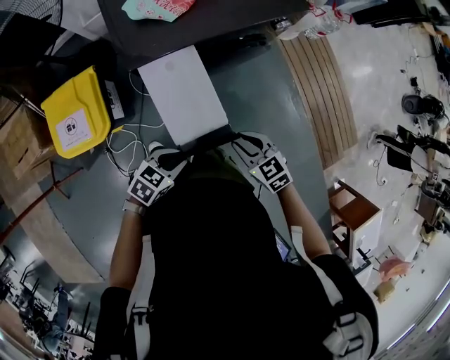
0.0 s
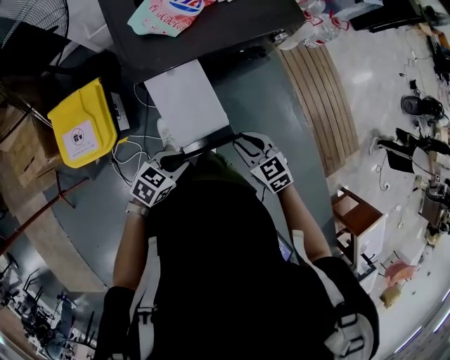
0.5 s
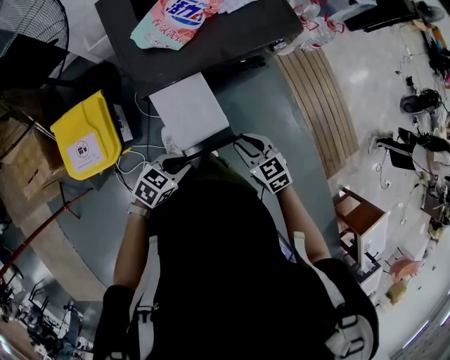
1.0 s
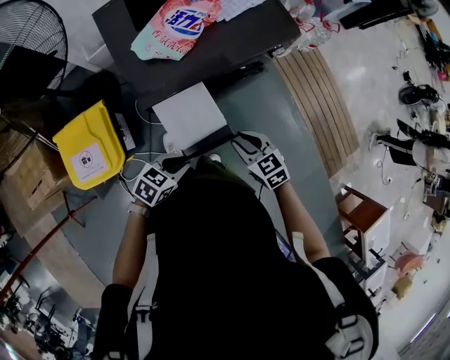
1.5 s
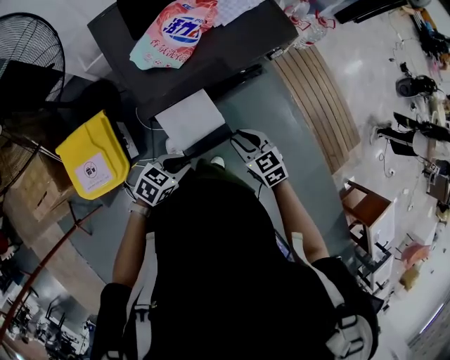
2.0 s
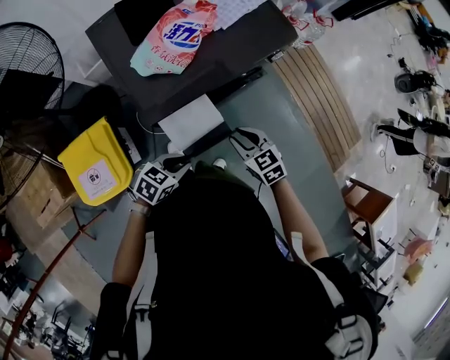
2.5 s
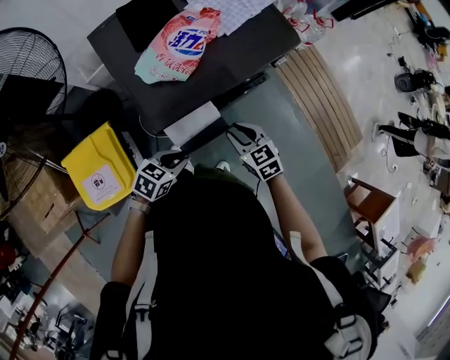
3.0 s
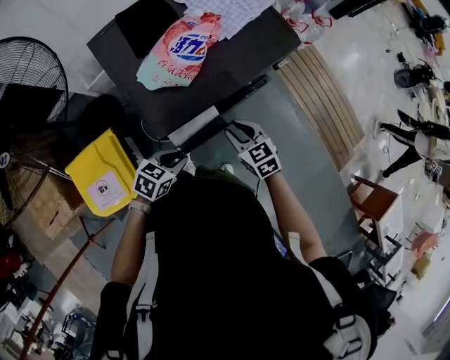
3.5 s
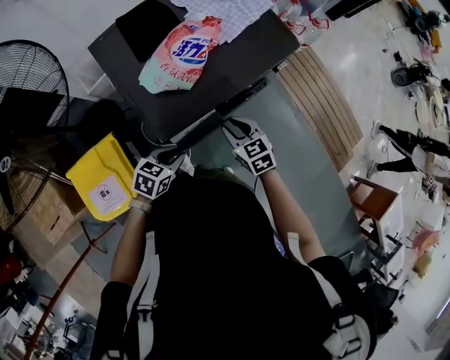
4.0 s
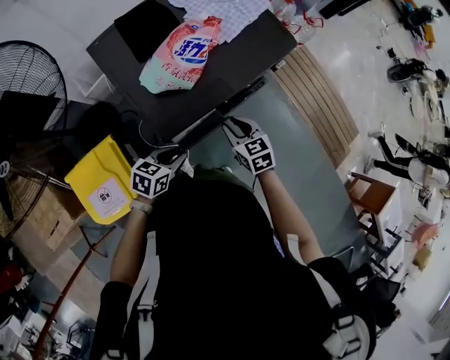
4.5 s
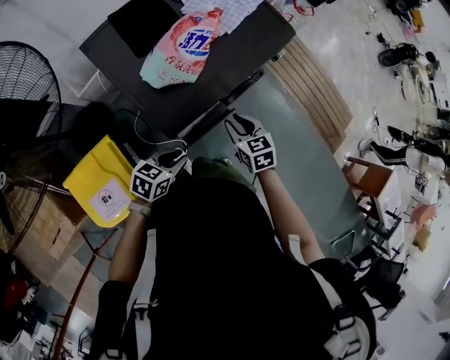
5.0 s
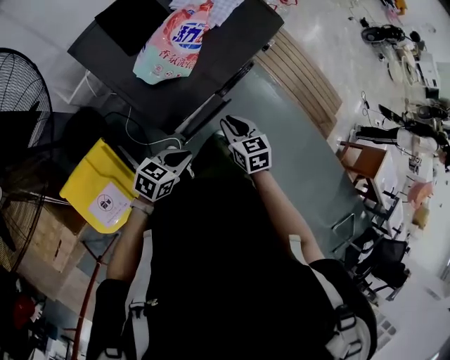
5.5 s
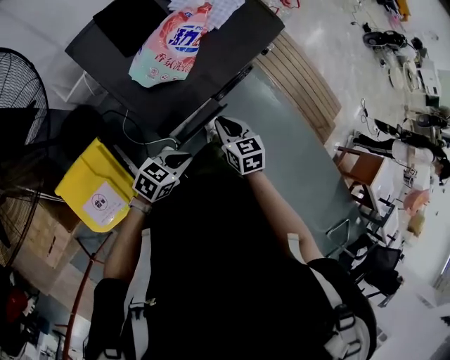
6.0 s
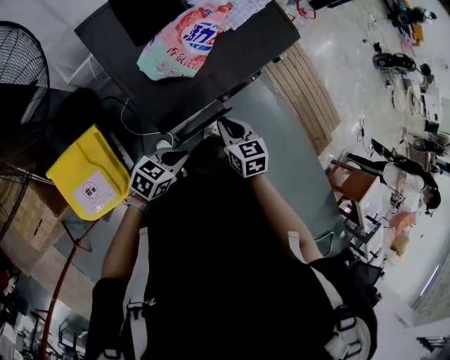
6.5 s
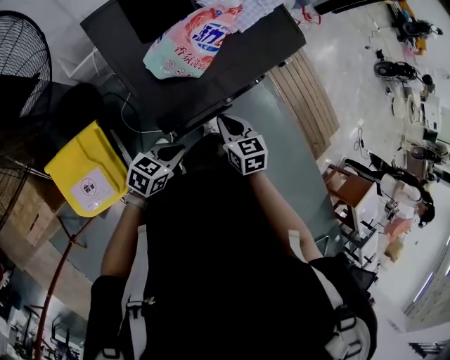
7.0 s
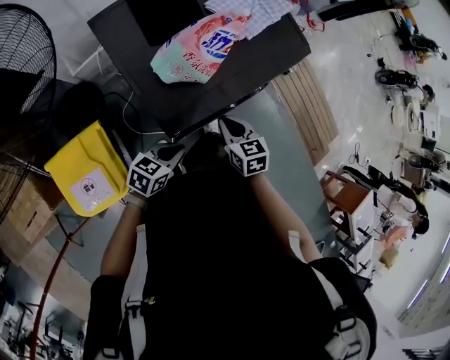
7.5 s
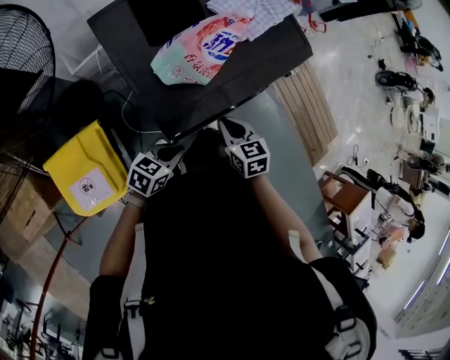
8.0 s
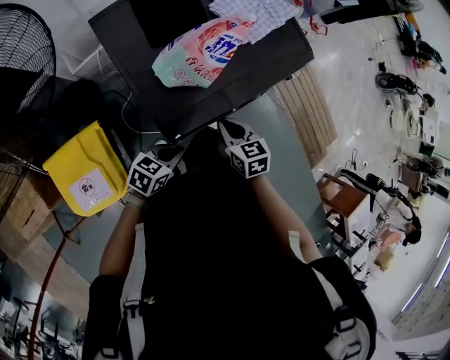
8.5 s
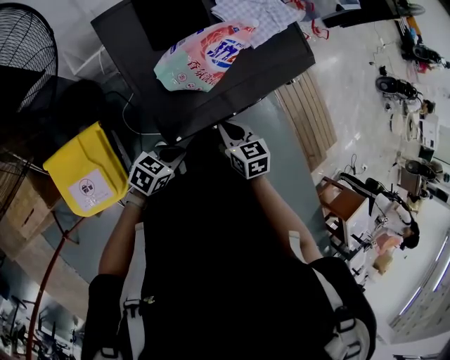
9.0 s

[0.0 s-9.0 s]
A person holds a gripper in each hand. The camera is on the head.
0.0 to 2.0 s: Both grippers move forward and to the left, approximately 15 cm.
2.0 to 4.5 s: The grippers both shift to the left and forward by approximately 10 cm.
4.5 to 7.0 s: The right gripper closes its fingers.
7.0 to 9.0 s: The grippers move only a little.

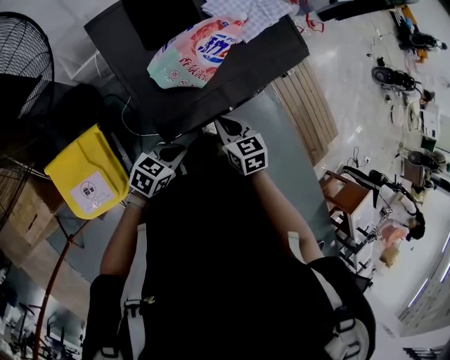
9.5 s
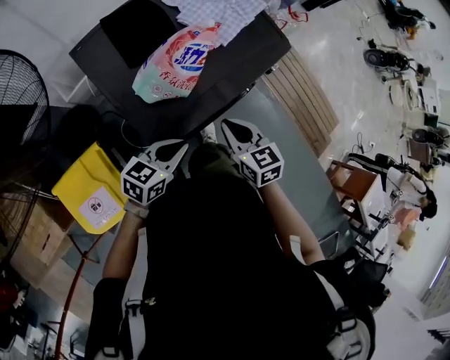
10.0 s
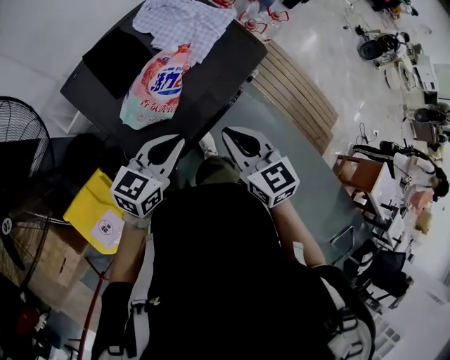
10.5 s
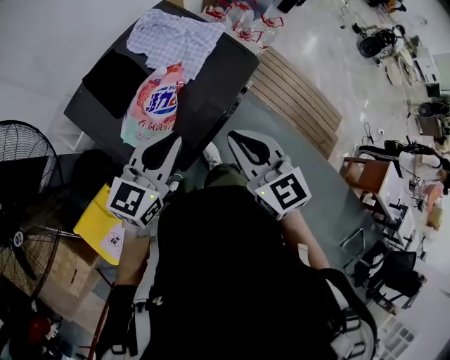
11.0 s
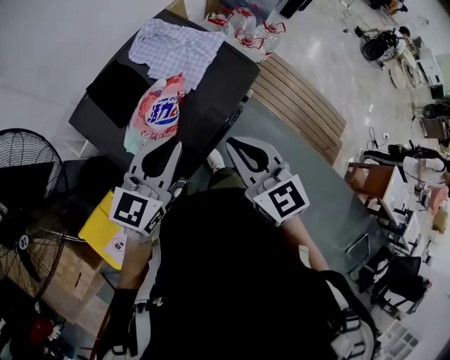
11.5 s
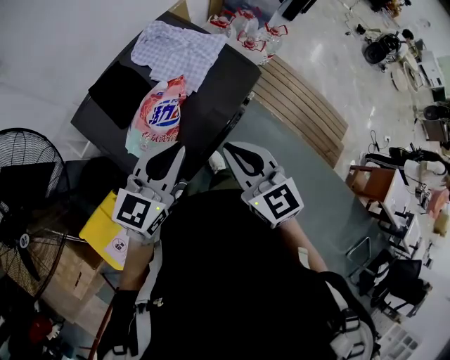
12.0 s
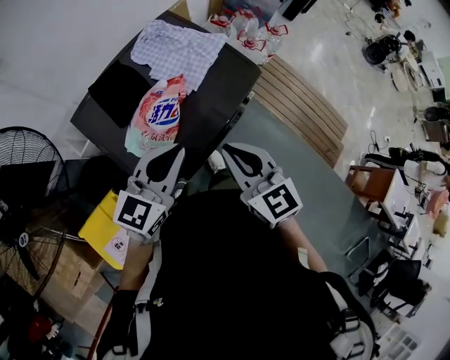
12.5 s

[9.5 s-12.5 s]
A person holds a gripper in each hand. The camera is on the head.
9.5 to 11.0 s: The left gripper goes roughly 30 cm upward and forward, and rotates roughly 30 degrees. The right gripper moves upward, approximately 25 cm, and changes its angle by approximately 30 degrees.
11.0 to 12.5 s: The grippers stay close to where they were, moving slightly.

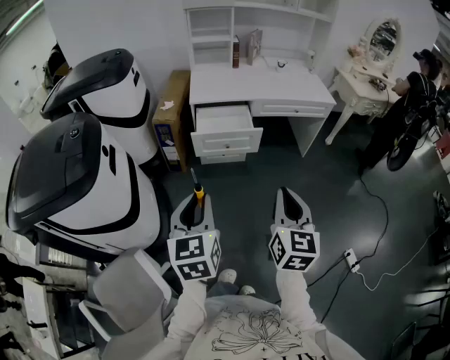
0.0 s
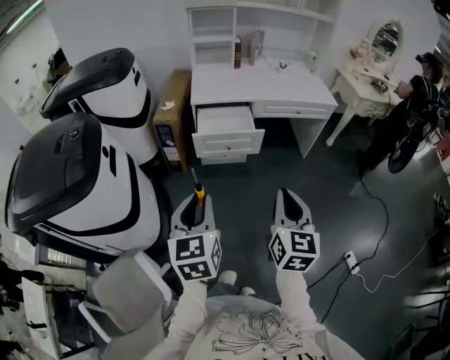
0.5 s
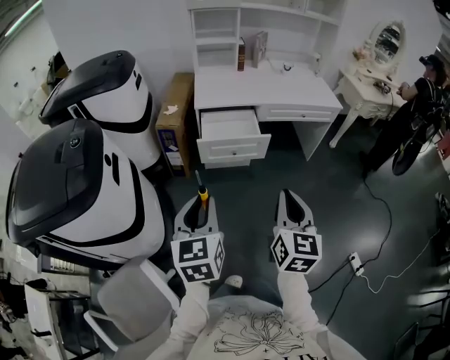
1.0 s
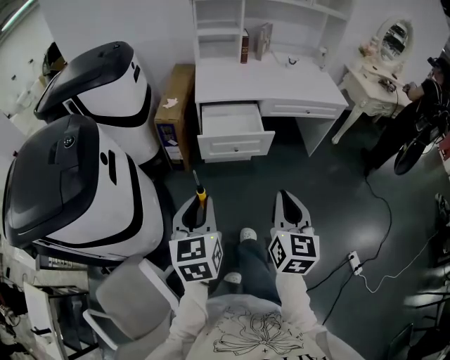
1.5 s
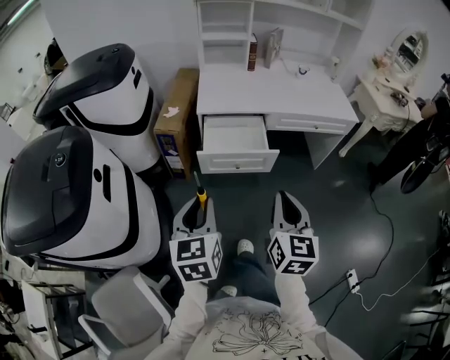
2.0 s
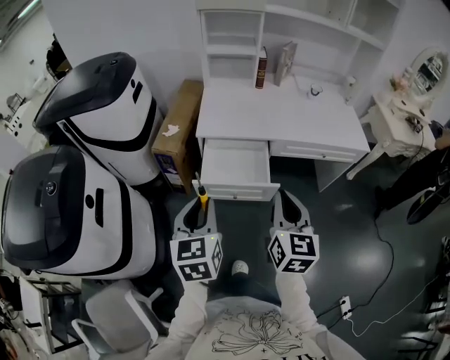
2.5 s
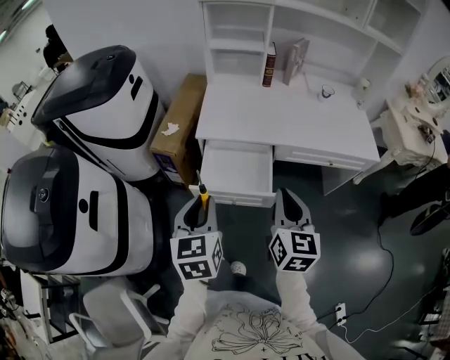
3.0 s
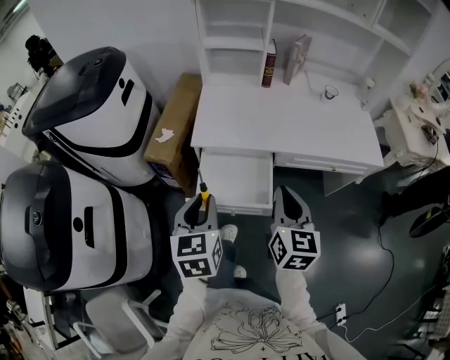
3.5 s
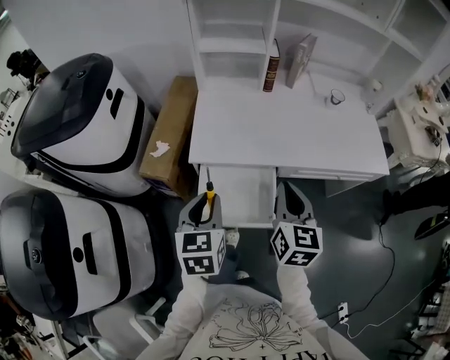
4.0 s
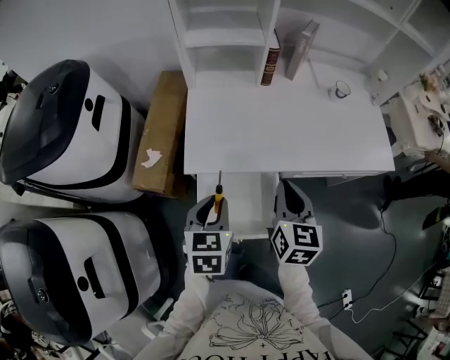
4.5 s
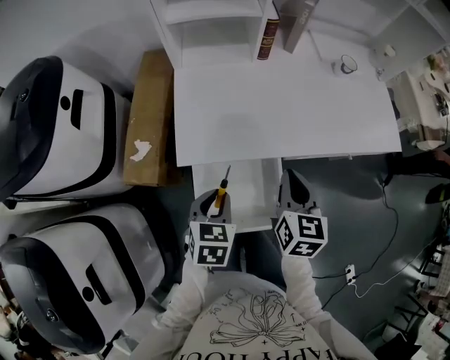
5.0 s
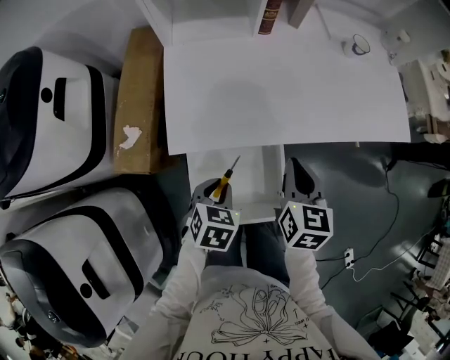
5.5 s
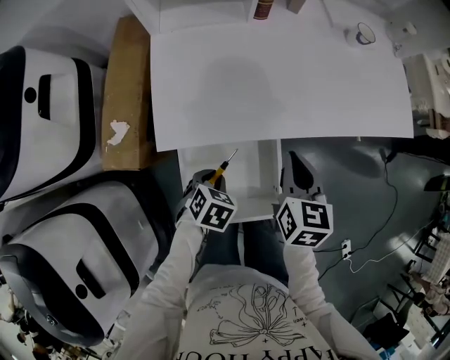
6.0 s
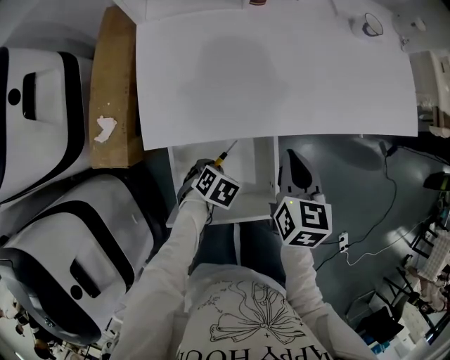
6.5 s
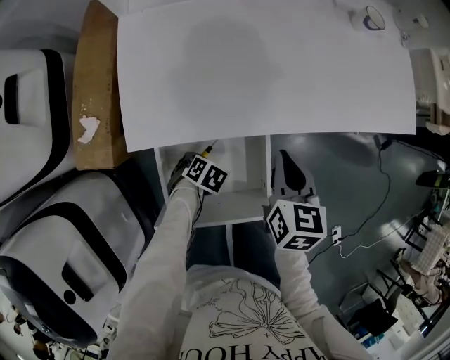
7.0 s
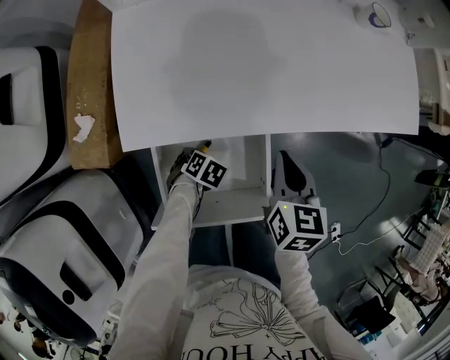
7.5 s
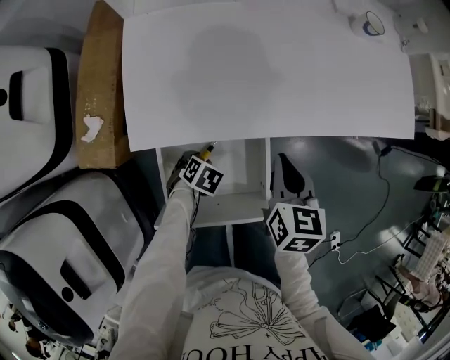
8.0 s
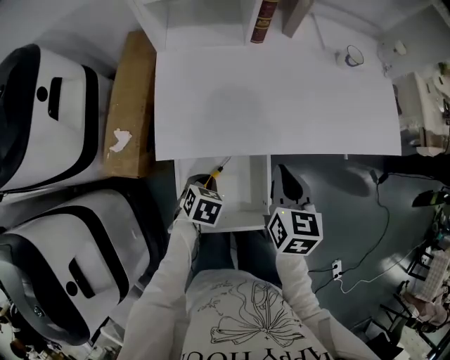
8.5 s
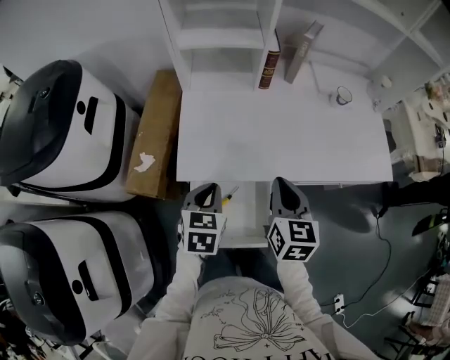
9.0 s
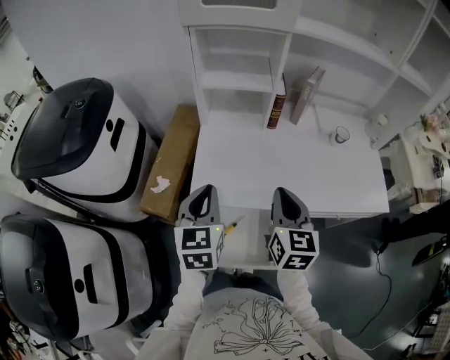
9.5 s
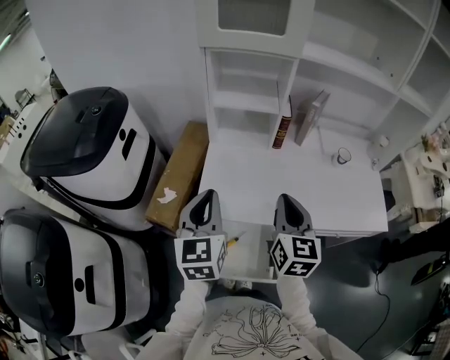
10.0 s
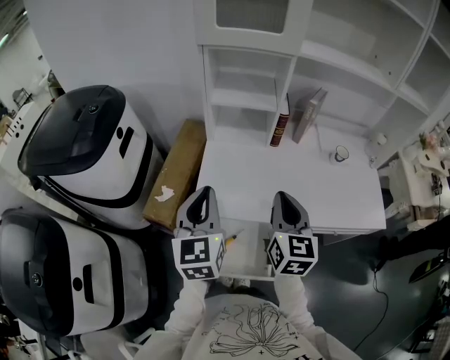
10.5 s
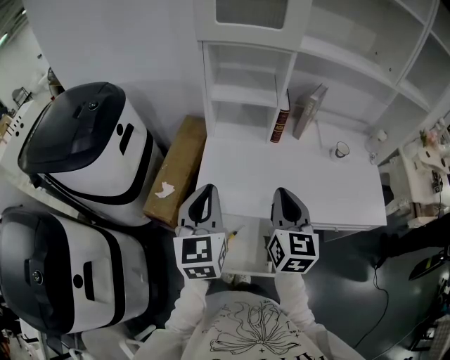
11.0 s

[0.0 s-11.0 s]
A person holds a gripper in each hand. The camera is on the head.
0.0 to 2.0 s: The two grippers go some 20 cm forward.
2.0 to 3.5 s: The two grippers go roughly 30 cm forward.
3.5 to 5.5 s: The right gripper shifts roughly 25 cm forward and downward, and rotates about 20 degrees. The left gripper goes some 30 cm downward and forward, and angles its fingers downward, by about 30 degrees.
5.5 to 7.5 s: The right gripper heads downward, covering about 10 cm. Meanwhile the left gripper goes about 25 cm downward, and turns by some 30 degrees.
7.5 to 9.0 s: The right gripper moves upward, roughly 20 cm, and swivels about 20 degrees, while the left gripper is displaced upward by roughly 35 cm, and tilts its fingers approximately 50 degrees upward.
9.0 to 11.0 s: The right gripper is displaced upward by approximately 15 cm. Meanwhile the left gripper moves upward, about 20 cm, and tilts its fingers roughly 30 degrees upward.

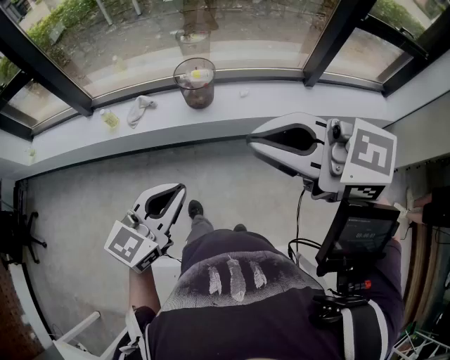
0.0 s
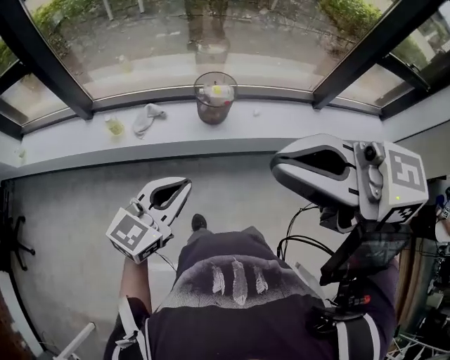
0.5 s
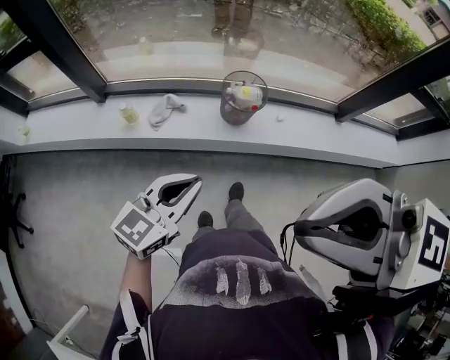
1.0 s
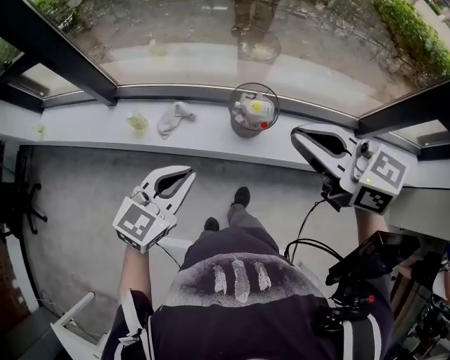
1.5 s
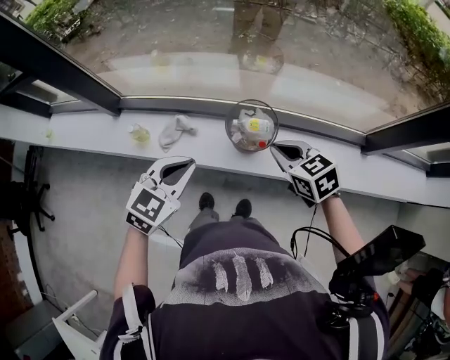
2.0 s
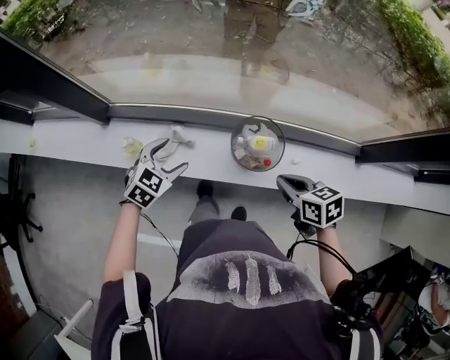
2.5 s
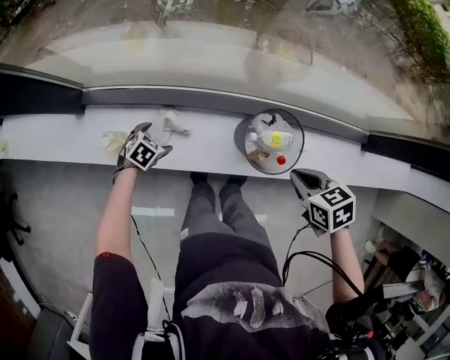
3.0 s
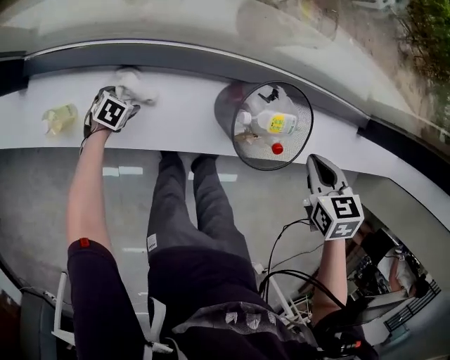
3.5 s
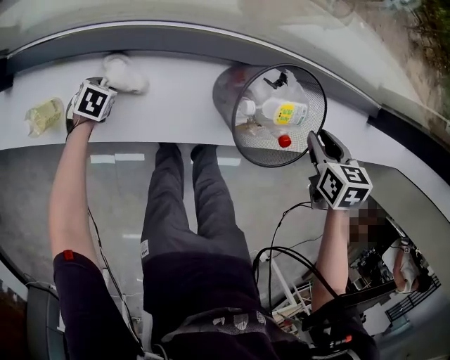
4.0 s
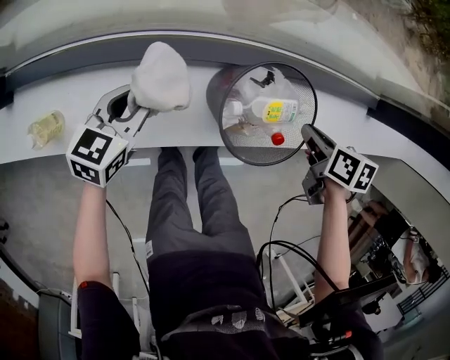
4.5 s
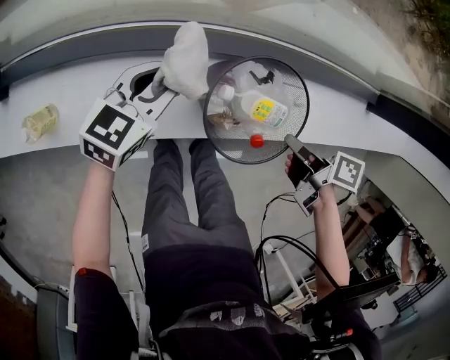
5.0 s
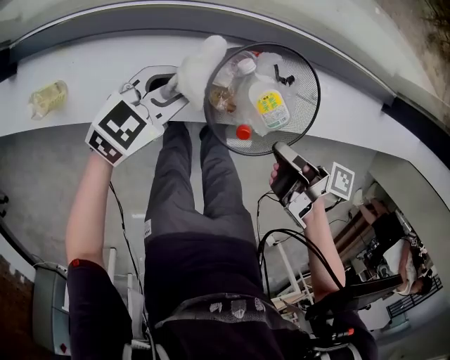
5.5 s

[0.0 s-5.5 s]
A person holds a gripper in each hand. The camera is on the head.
0.0 to 2.0 s: Both grippers are carried forward, roughly 40 cm. The left gripper rotates roughly 30 degrees. Meanwhile the right gripper moves downward, some 30 cm, and turns by some 30 degrees.
2.0 to 3.5 s: The left gripper heads downward, covering some 50 cm, points its fingers roughly 40 degrees further downward, and opens. The right gripper is displaced downward by about 20 cm, and turns by approximately 40 degrees.
3.5 to 5.5 s: The left gripper moves upward, some 20 cm, points its fingers about 40 degrees further upward, and closes its fingers. The right gripper ends up some 15 cm from where it was, and rolls clockwise, seen from behind, by roughly 90 degrees.
